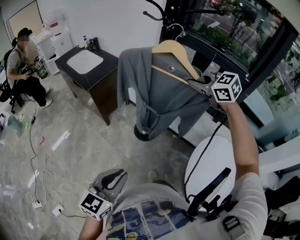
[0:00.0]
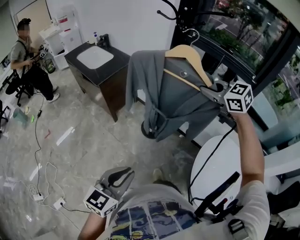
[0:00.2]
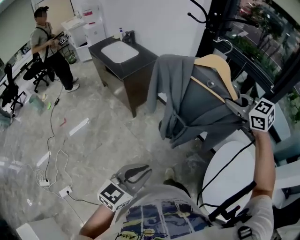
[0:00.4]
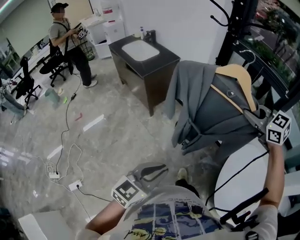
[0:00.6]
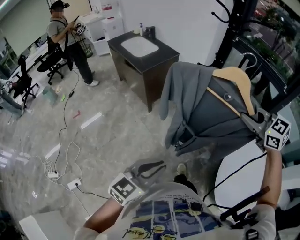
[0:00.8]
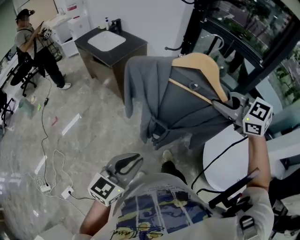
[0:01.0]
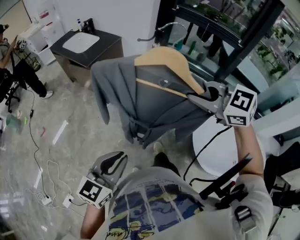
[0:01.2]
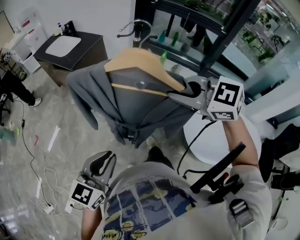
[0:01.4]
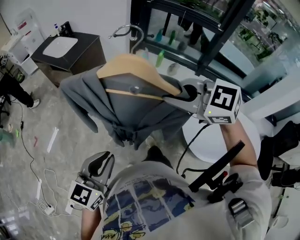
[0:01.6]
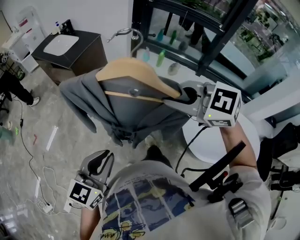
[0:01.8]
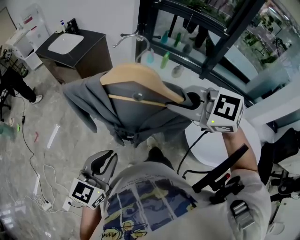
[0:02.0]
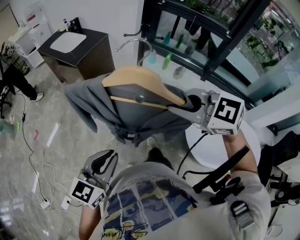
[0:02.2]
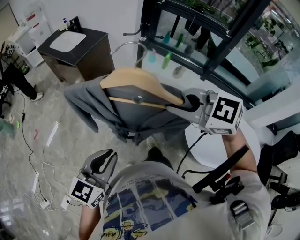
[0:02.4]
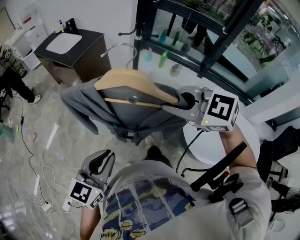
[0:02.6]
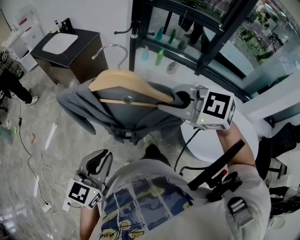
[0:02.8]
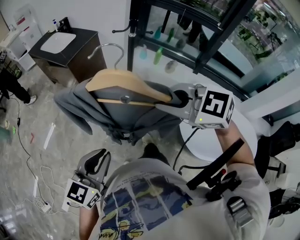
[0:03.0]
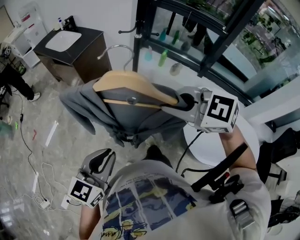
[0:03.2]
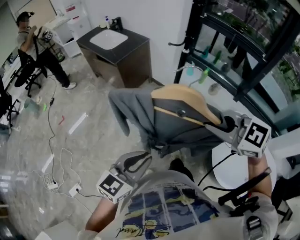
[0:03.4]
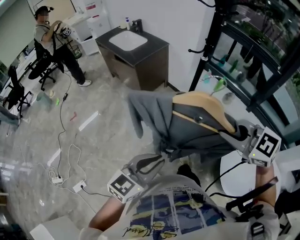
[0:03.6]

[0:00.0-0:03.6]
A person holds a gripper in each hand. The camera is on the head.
0:00.0 to 0:01.8: The left gripper is displaced backward and to the left by about 15 cm. The right gripper heads backward and to the left, covering roughly 35 cm.
0:01.8 to 0:03.6: The grippers stay close to where they were, moving slightly.

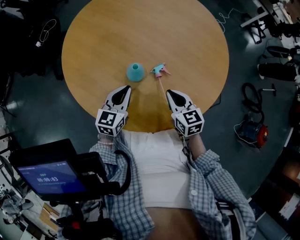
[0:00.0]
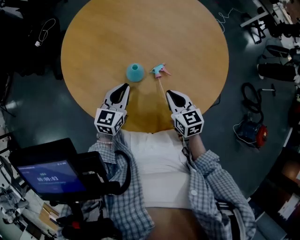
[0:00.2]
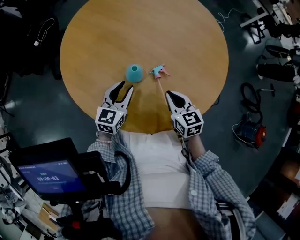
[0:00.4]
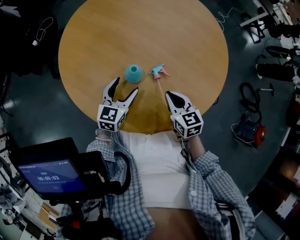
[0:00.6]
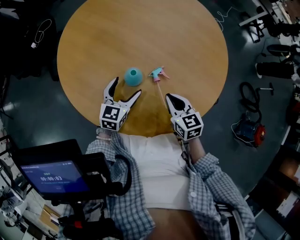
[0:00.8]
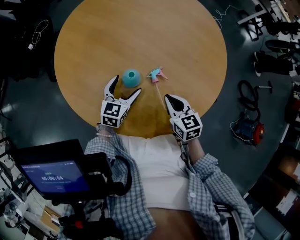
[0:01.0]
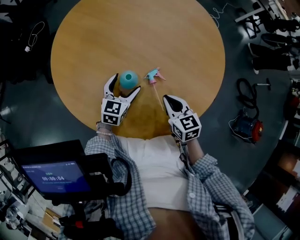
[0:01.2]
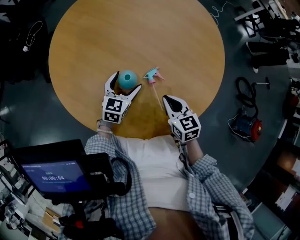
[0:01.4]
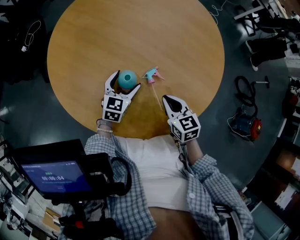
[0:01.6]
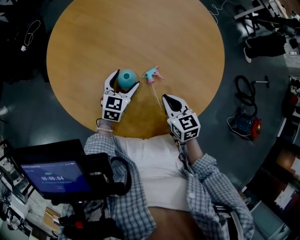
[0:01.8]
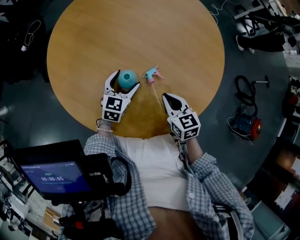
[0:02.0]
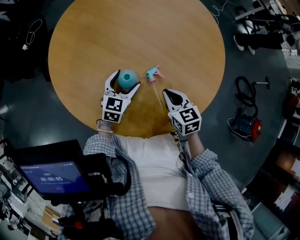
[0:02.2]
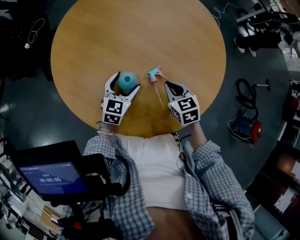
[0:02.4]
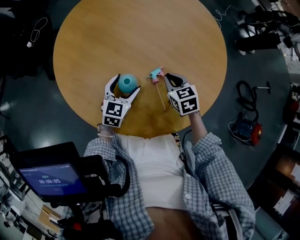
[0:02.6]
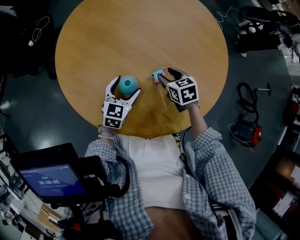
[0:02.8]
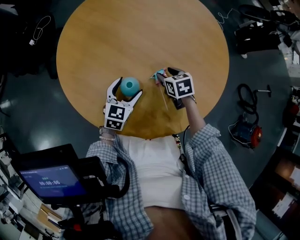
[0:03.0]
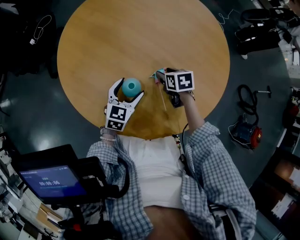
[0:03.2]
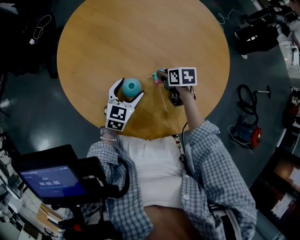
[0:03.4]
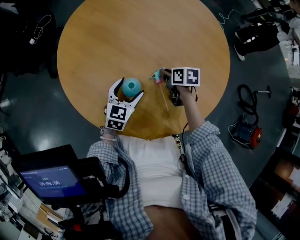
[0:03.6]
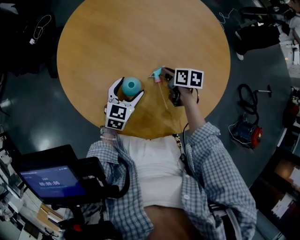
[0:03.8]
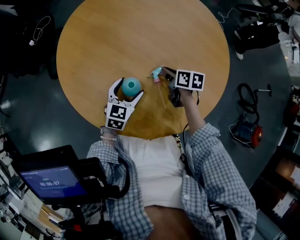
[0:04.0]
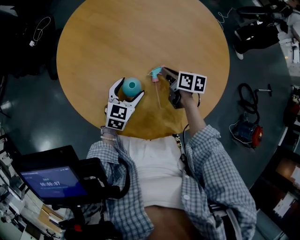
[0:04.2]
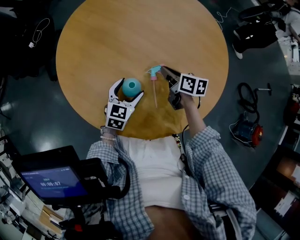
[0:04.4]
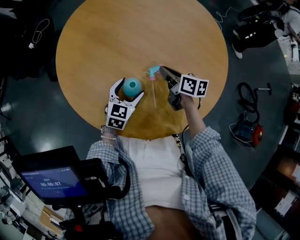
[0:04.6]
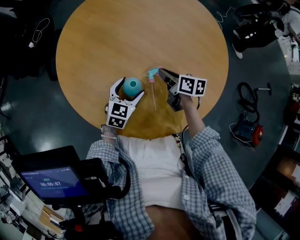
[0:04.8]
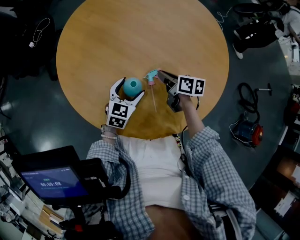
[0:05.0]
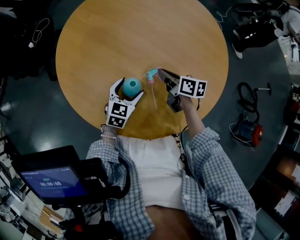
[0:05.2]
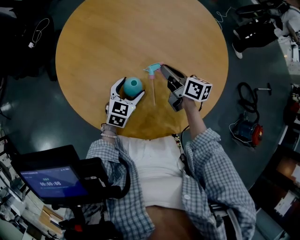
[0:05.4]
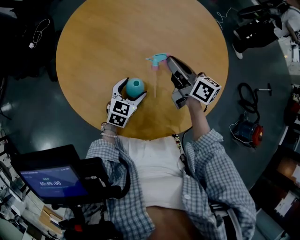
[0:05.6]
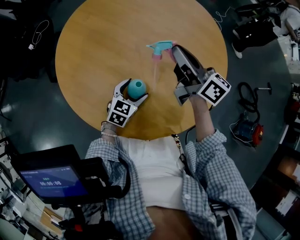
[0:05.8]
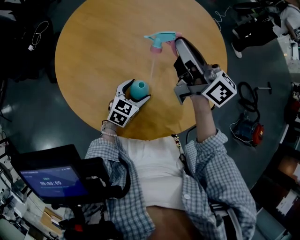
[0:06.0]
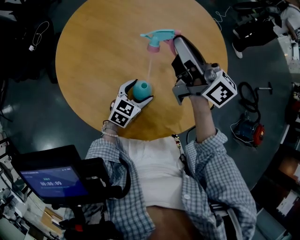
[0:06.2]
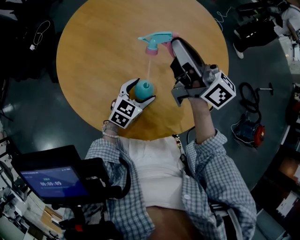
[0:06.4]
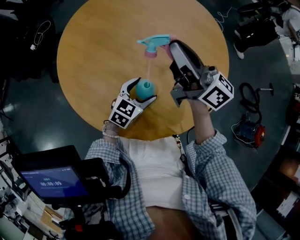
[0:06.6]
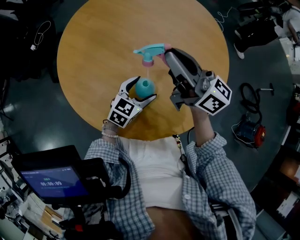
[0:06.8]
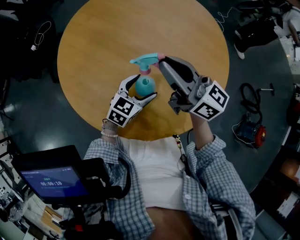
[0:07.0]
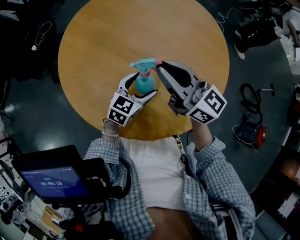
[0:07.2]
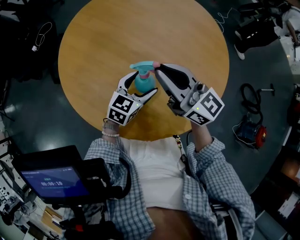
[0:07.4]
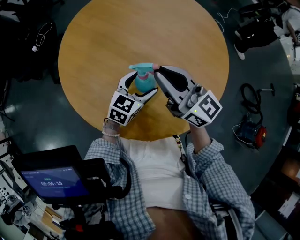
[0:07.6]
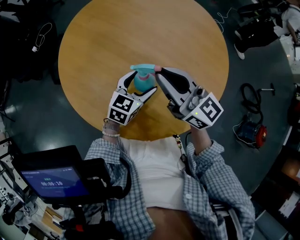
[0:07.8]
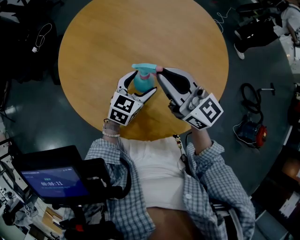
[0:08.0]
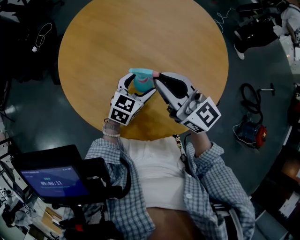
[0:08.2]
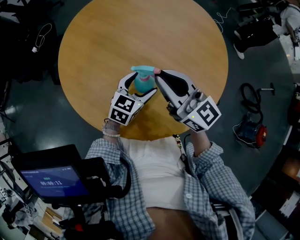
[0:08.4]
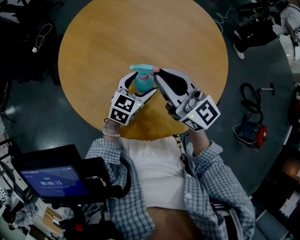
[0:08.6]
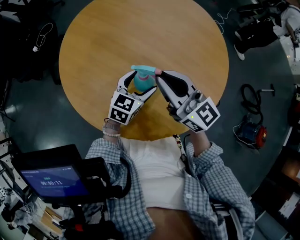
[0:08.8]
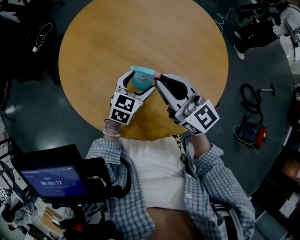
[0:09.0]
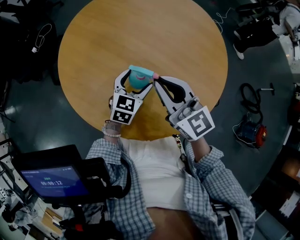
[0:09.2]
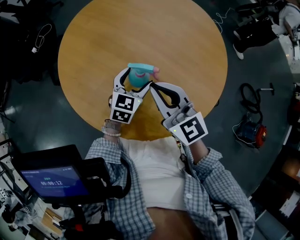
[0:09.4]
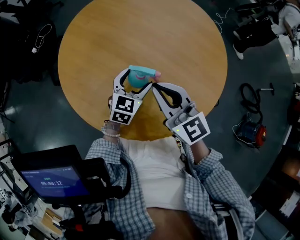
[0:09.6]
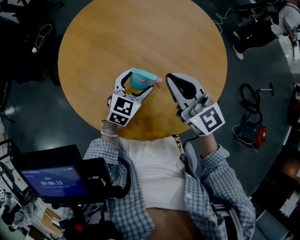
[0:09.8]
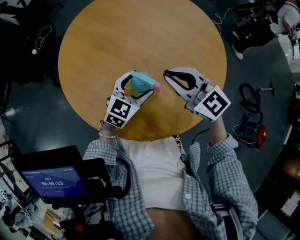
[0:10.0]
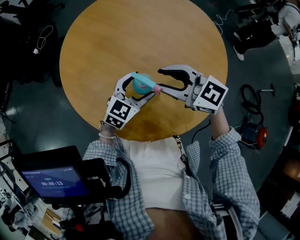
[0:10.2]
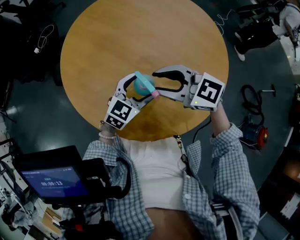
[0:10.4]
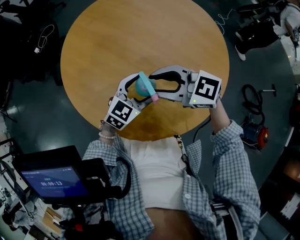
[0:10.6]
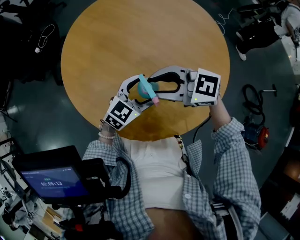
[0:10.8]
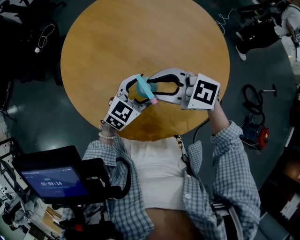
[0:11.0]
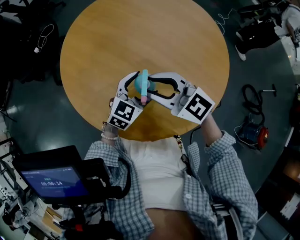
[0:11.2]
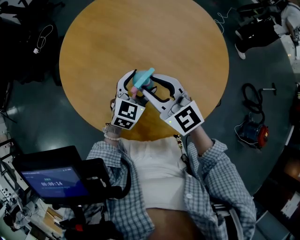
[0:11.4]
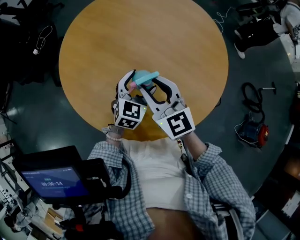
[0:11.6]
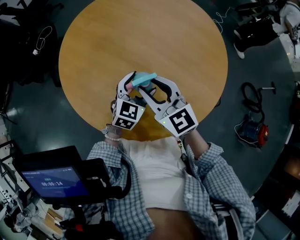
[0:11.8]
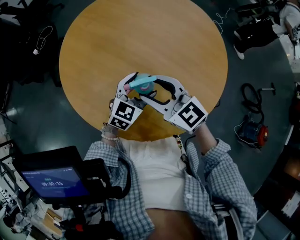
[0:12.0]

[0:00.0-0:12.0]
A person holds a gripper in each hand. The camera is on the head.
0:00.0 to 0:01.6: The left gripper travels forward and downward by roughly 10 cm, and opens up.
0:01.6 to 0:03.0: The right gripper is displaced forward and downward by about 15 cm, and opens up.
0:03.0 to 0:04.4: The right gripper swivels roughly 40 degrees, and closes.
0:04.4 to 0:06.0: The right gripper goes approximately 25 cm upward, and tips its fingers upward by approximately 40 degrees.
0:06.0 to 0:07.6: The left gripper goes roughly 5 cm upward. The right gripper travels backward and to the left by some 10 cm, and rotates approximately 30 degrees.
0:07.6 to 0:09.0: There are only small adjustments of the grippers.
0:09.0 to 0:10.4: The right gripper rotates some 40 degrees, and opens its fingers.
0:10.4 to 0:12.0: The right gripper changes its angle by about 20 degrees.

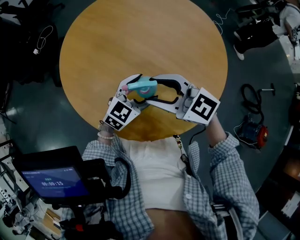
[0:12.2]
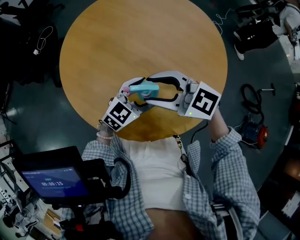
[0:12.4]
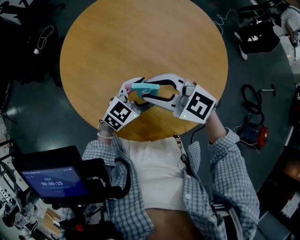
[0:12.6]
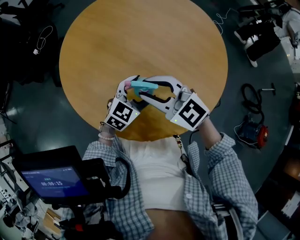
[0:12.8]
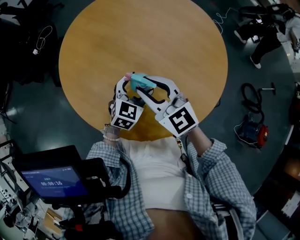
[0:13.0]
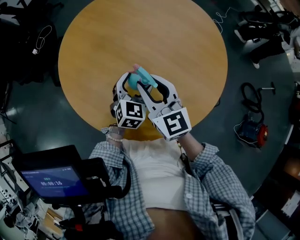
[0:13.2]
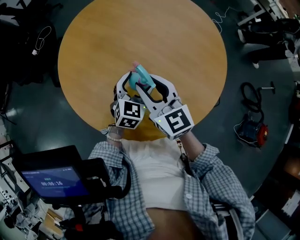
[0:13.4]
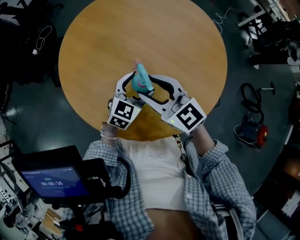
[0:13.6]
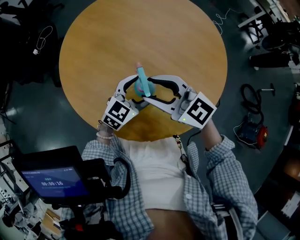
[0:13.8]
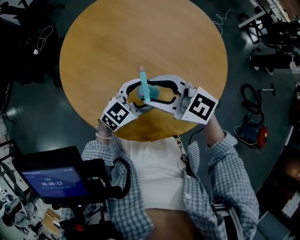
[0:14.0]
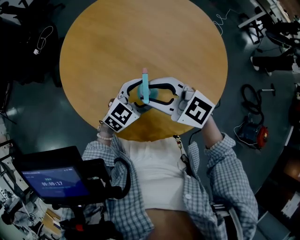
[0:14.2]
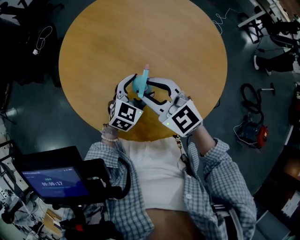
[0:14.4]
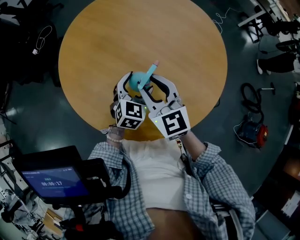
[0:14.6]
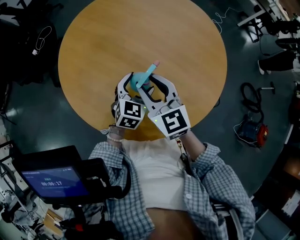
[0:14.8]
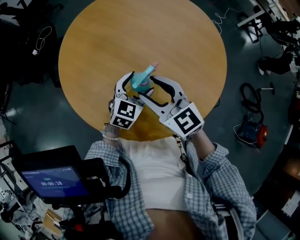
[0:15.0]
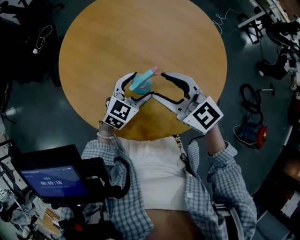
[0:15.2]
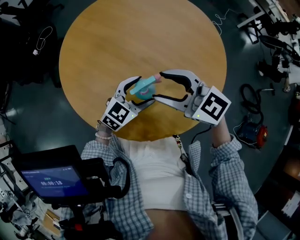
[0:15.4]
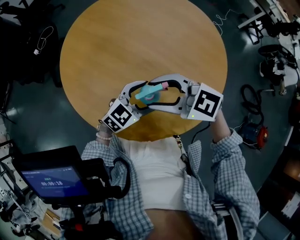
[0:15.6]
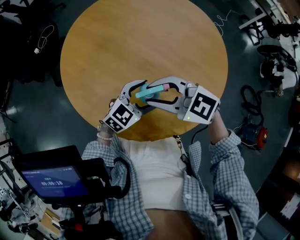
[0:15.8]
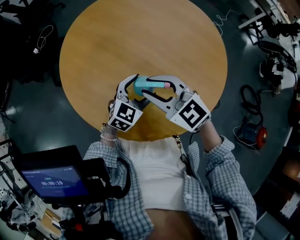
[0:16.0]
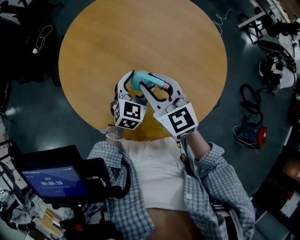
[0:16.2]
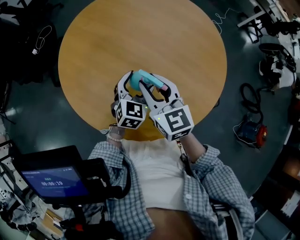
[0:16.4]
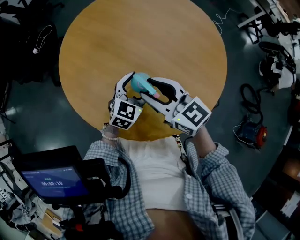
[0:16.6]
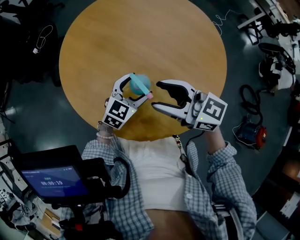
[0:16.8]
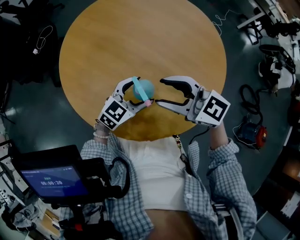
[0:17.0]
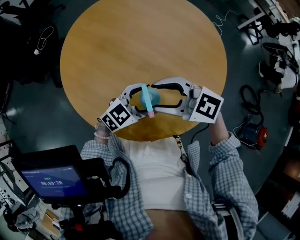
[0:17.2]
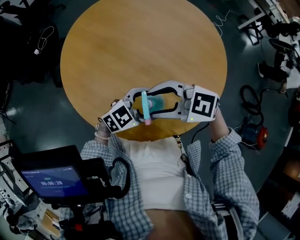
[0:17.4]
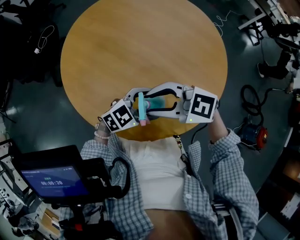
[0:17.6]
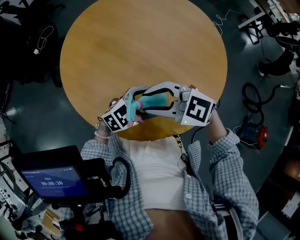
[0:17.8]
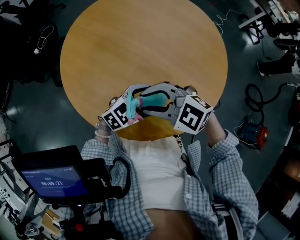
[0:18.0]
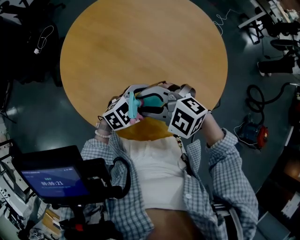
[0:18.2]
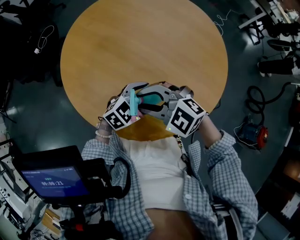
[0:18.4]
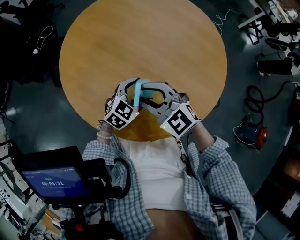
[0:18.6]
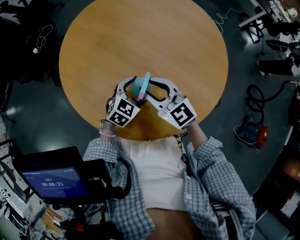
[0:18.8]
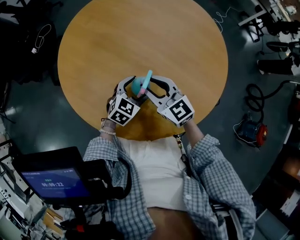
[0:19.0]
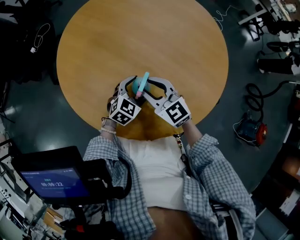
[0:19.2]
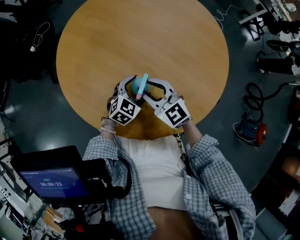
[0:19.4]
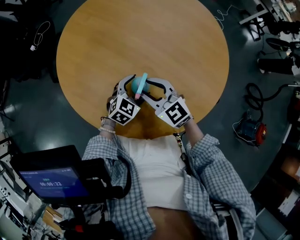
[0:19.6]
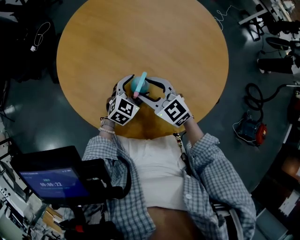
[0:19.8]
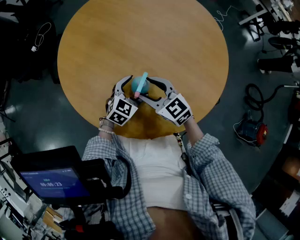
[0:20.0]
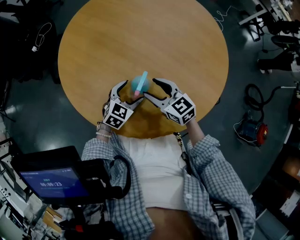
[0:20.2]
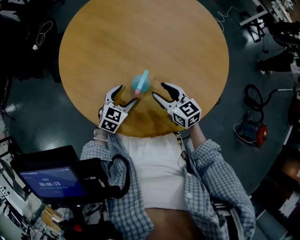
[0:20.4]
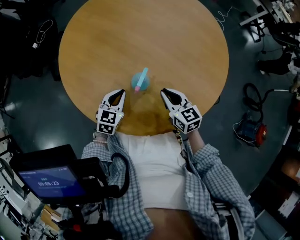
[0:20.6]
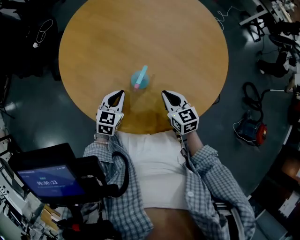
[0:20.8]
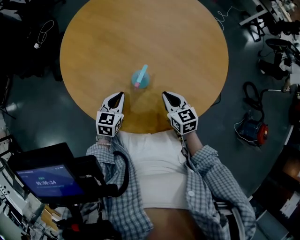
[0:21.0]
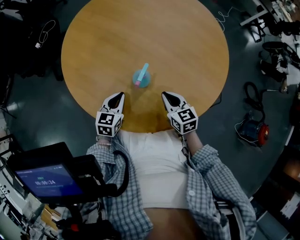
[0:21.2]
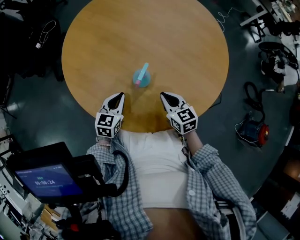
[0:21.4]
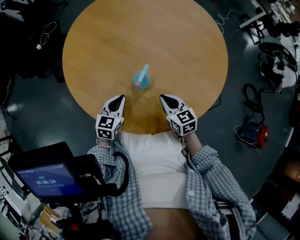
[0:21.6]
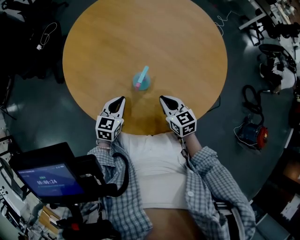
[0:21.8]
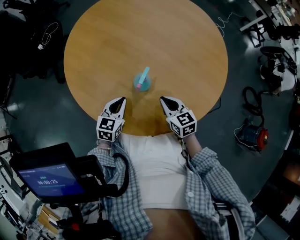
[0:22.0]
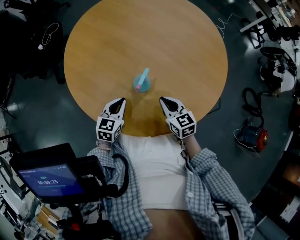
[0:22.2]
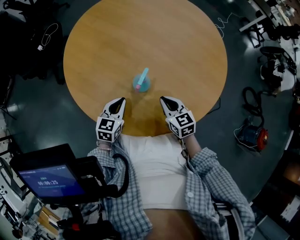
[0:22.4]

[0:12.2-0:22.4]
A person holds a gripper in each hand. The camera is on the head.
0:16.6 to 0:18.0: The right gripper changes place by about 5 cm, and changes its angle by some 50 degrees. The left gripper moves roughly 10 cm, and turns by approximately 30 degrees.
0:18.0 to 0:19.4: Both grippers travel together downward, some 5 cm. The left gripper rotates about 30 degrees, while the right gripper turns by some 40 degrees.
0:19.4 to 0:21.0: The right gripper goes about 15 cm to the right and downward, swivels roughly 40 degrees, and closes up. Meanwhile the left gripper shifts some 10 cm to the left, rotates roughly 30 degrees, and closes its fingers.
0:21.0 to 0:22.4: The grippers make only small movements.
